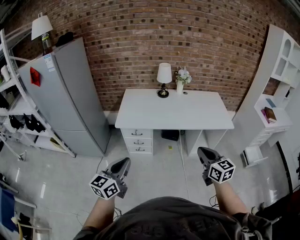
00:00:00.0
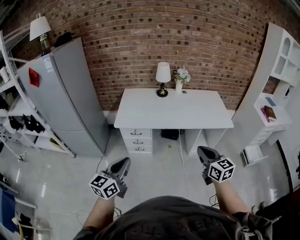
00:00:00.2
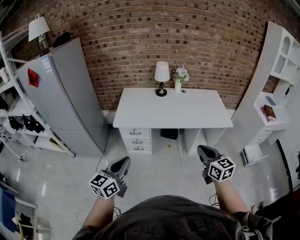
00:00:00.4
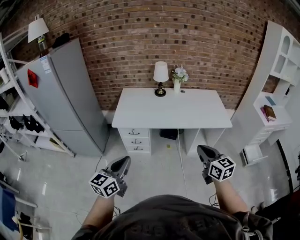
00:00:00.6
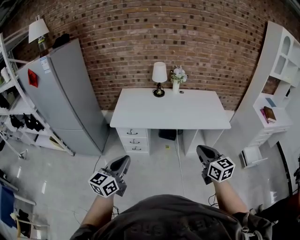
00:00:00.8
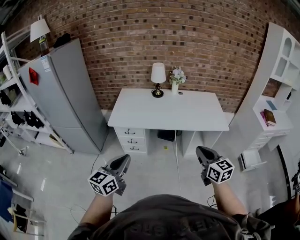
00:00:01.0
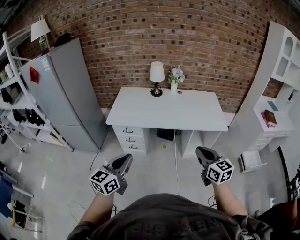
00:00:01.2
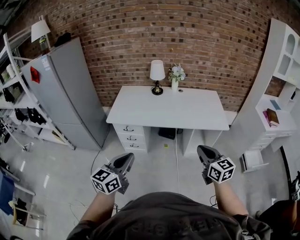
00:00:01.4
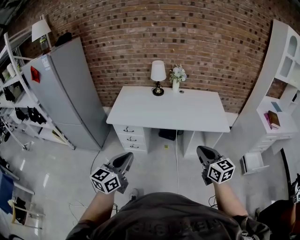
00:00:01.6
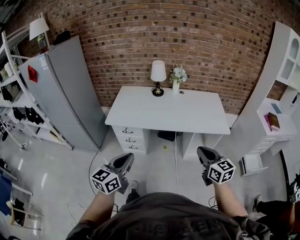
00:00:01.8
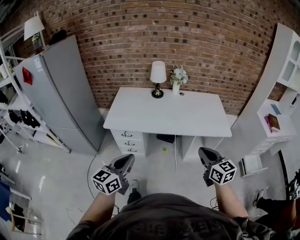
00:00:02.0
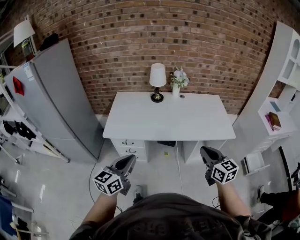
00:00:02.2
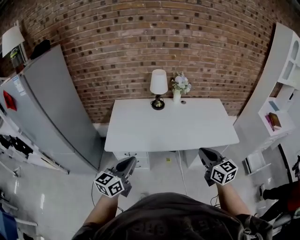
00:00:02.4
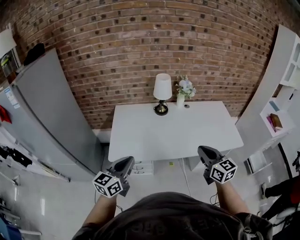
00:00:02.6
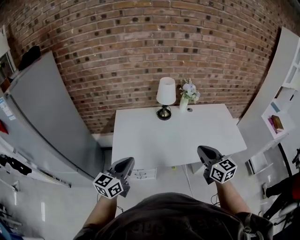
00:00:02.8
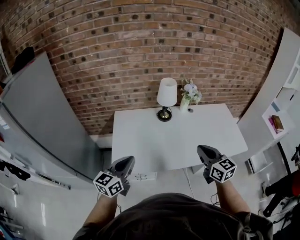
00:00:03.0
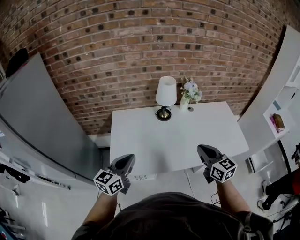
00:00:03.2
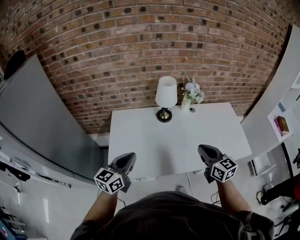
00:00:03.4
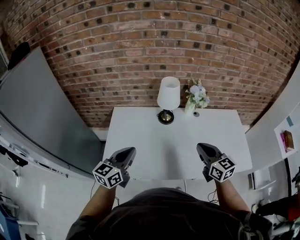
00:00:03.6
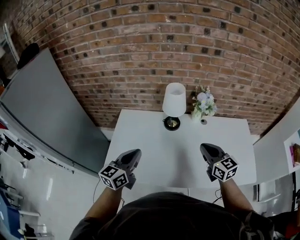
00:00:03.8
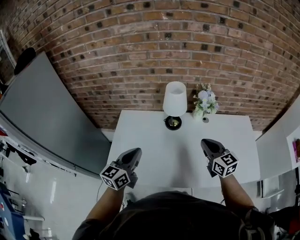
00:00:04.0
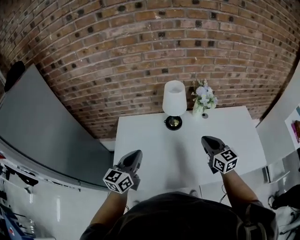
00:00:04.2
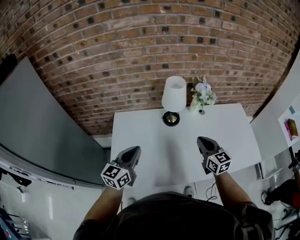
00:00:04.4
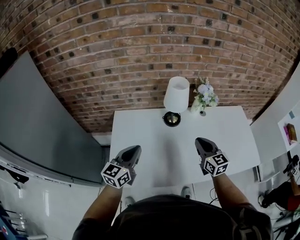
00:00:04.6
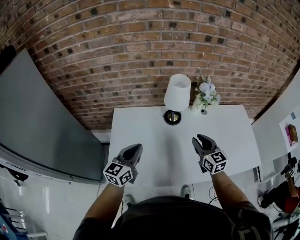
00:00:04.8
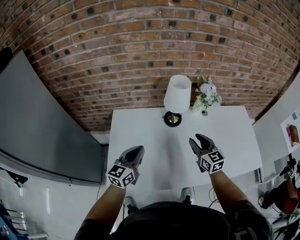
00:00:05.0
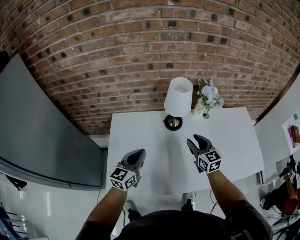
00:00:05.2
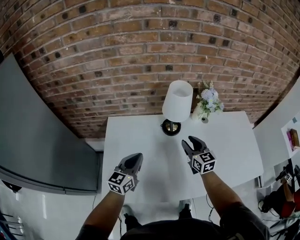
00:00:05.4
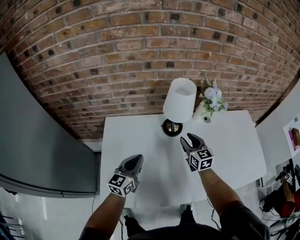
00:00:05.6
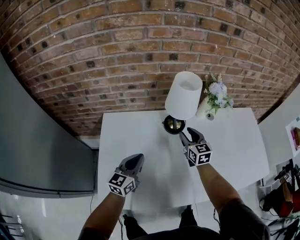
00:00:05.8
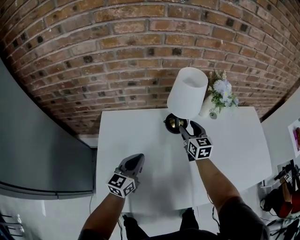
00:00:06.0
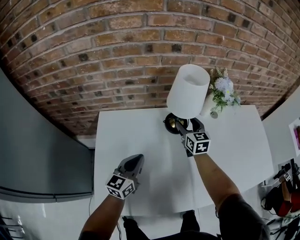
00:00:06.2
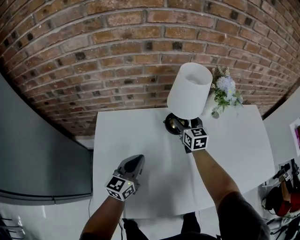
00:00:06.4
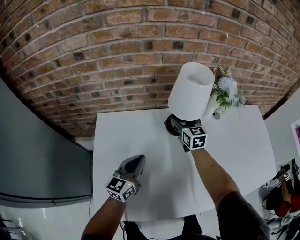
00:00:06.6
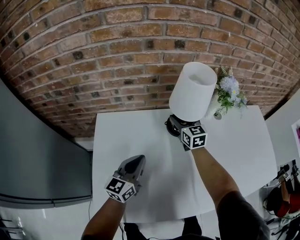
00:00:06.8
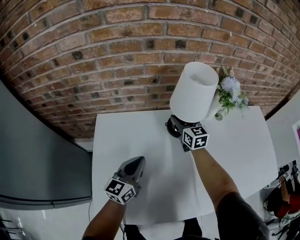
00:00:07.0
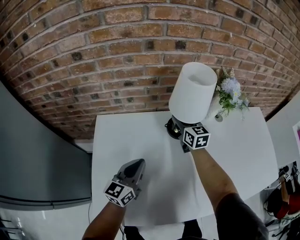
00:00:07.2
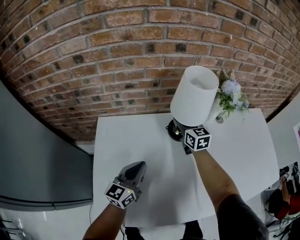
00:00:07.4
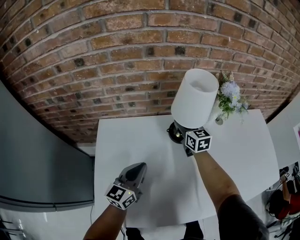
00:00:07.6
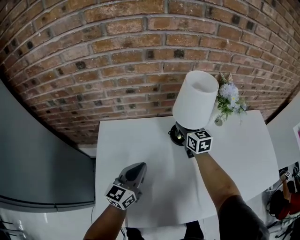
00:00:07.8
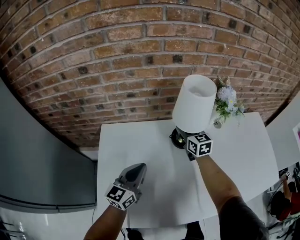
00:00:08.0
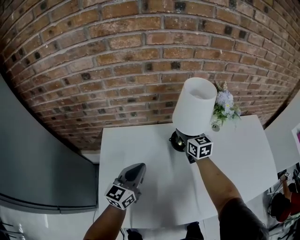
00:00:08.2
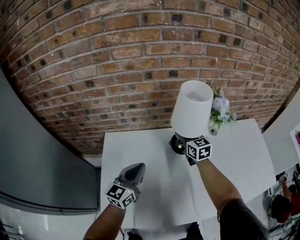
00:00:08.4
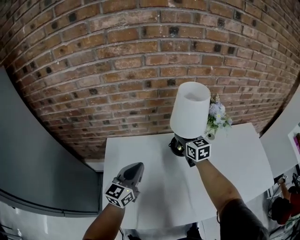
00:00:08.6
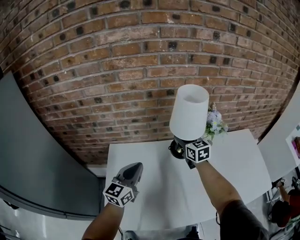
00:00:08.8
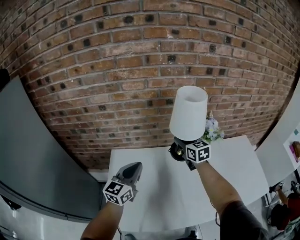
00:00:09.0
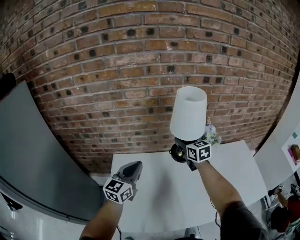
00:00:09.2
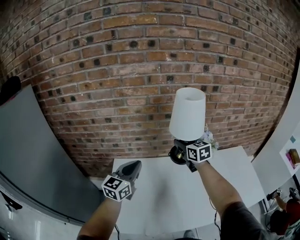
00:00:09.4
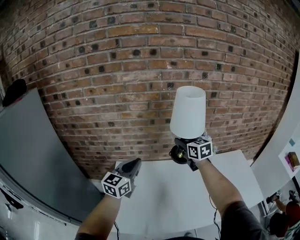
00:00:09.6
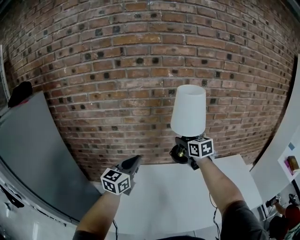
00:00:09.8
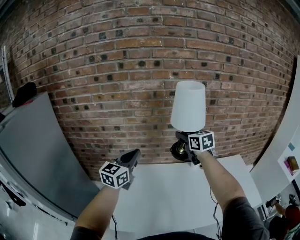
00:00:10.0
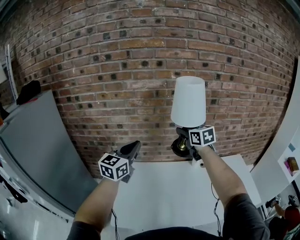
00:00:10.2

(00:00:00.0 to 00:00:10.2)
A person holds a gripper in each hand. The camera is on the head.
00:00:00.0 - 00:00:01.4: Both grippers move to the right, some 15 cm.
00:00:01.4 - 00:00:03.0: Both grippers are carried forward and to the left, about 50 cm.
00:00:03.0 - 00:00:04.4: The right gripper goes about 25 cm forward and downward; the left gripper is displaced forward by roughly 20 cm.
00:00:04.4 - 00:00:05.8: The left gripper heads downward and forward, covering about 20 cm. The right gripper shifts some 25 cm forward and downward, and opens its fingers.
00:00:05.8 - 00:00:07.2: The left gripper shifts by about 5 cm. Meanwhile the right gripper heads forward and to the left, covering roughly 15 cm, and opens and closes again.
00:00:07.2 - 00:00:08.8: The two grippers go some 15 cm upward.
00:00:08.8 - 00:00:10.2: Both grippers travel together upward, roughly 30 cm.

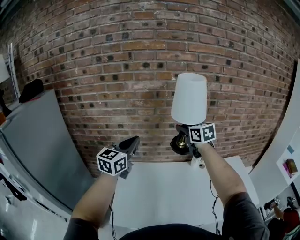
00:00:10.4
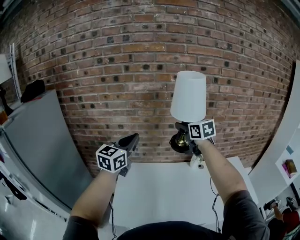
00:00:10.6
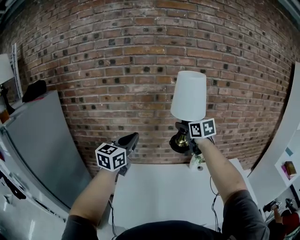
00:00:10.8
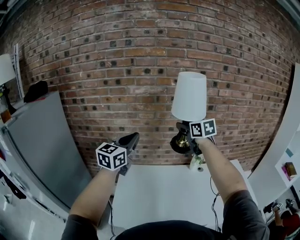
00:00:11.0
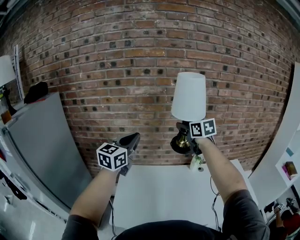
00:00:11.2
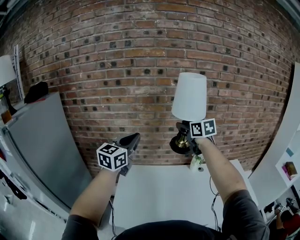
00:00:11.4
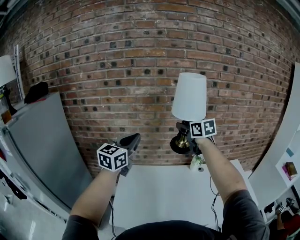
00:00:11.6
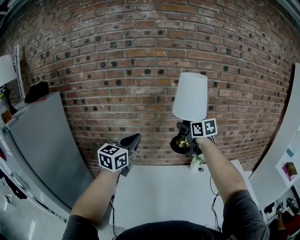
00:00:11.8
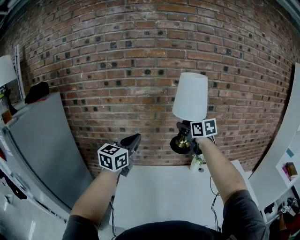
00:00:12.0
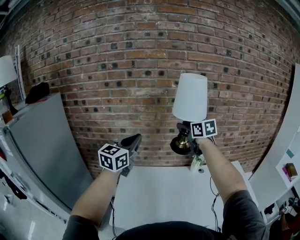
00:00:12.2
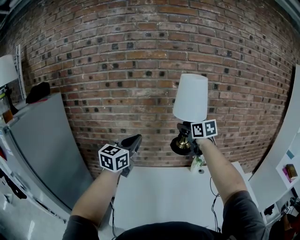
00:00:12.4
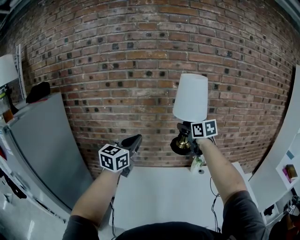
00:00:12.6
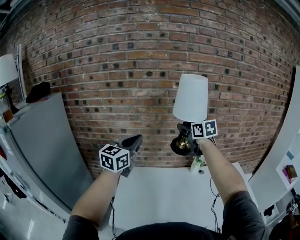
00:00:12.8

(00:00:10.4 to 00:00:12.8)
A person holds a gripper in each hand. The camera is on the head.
00:00:10.4 - 00:00:11.6: The grippers stay close to where they were, moving slightly.
00:00:11.6 - 00:00:12.8: Neither gripper changes place.

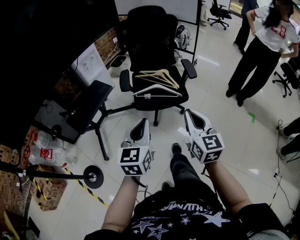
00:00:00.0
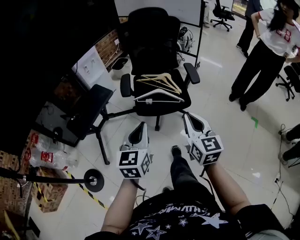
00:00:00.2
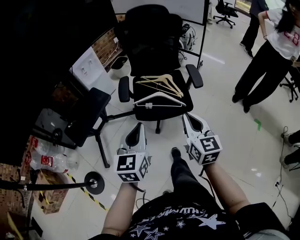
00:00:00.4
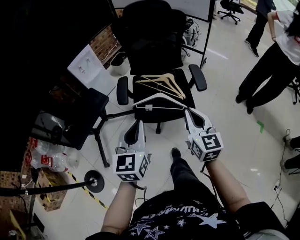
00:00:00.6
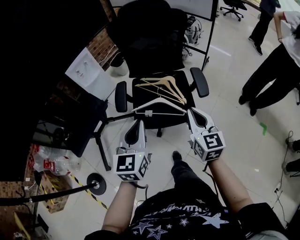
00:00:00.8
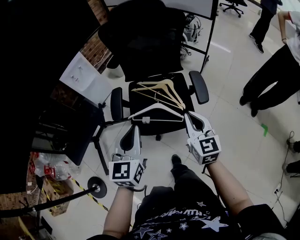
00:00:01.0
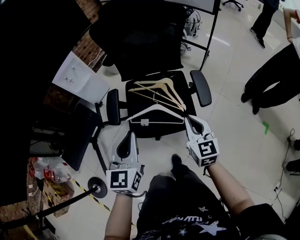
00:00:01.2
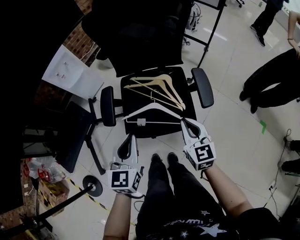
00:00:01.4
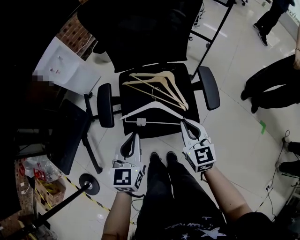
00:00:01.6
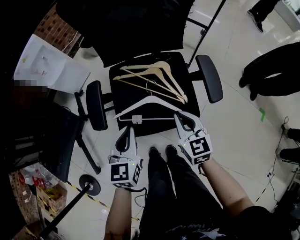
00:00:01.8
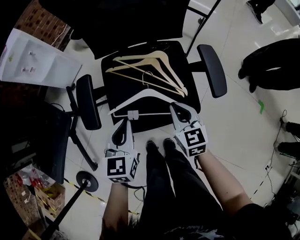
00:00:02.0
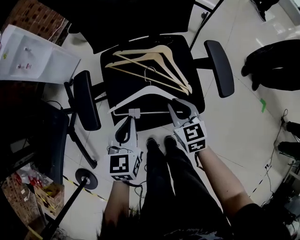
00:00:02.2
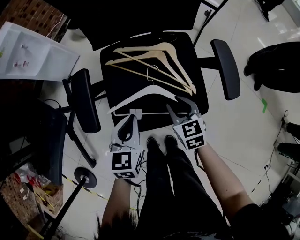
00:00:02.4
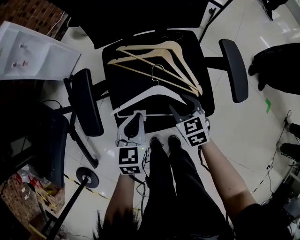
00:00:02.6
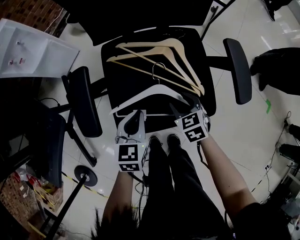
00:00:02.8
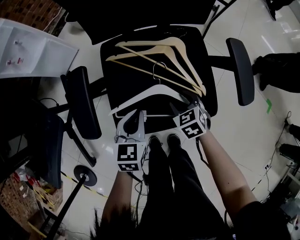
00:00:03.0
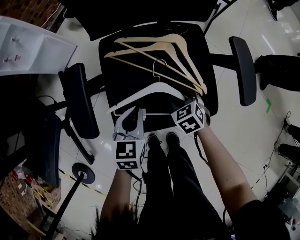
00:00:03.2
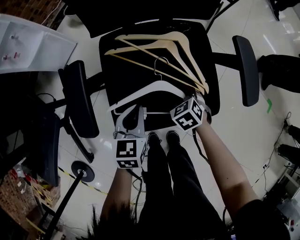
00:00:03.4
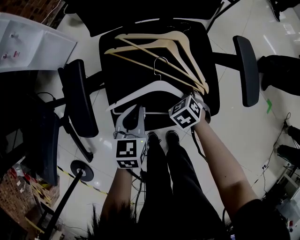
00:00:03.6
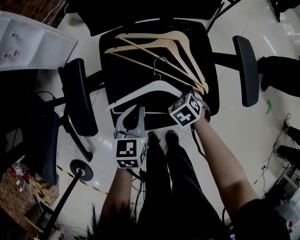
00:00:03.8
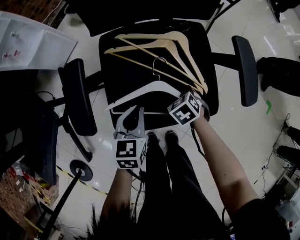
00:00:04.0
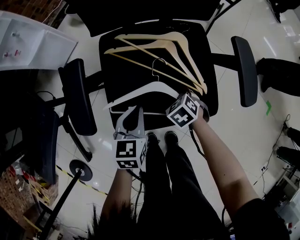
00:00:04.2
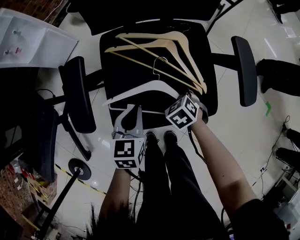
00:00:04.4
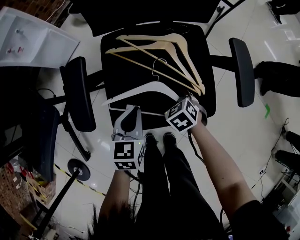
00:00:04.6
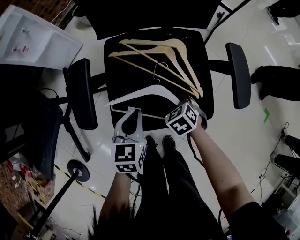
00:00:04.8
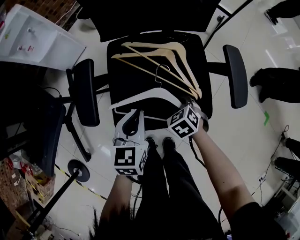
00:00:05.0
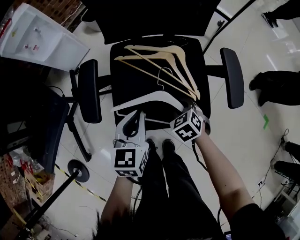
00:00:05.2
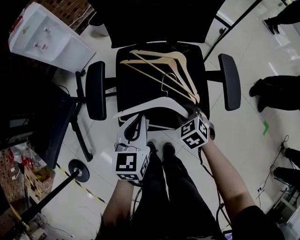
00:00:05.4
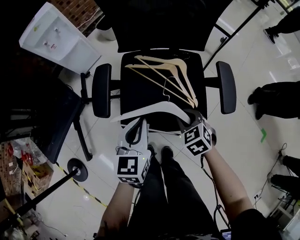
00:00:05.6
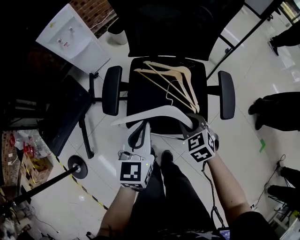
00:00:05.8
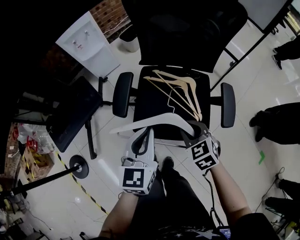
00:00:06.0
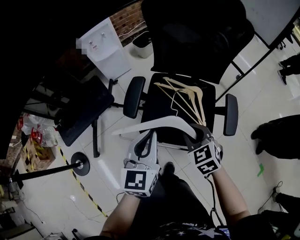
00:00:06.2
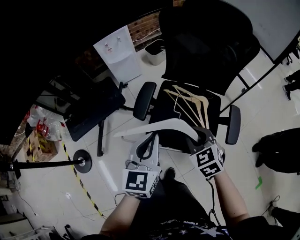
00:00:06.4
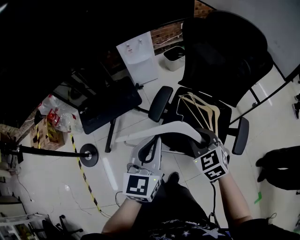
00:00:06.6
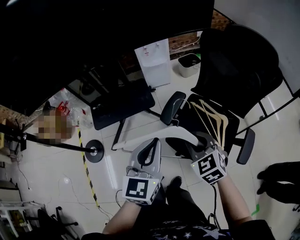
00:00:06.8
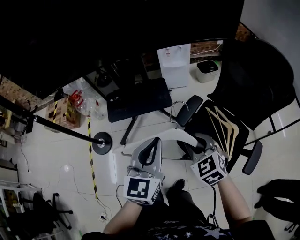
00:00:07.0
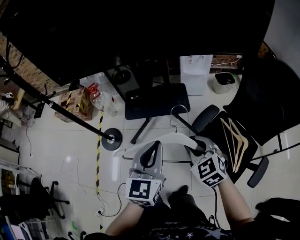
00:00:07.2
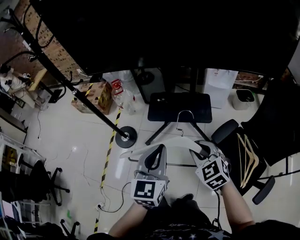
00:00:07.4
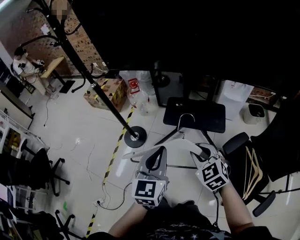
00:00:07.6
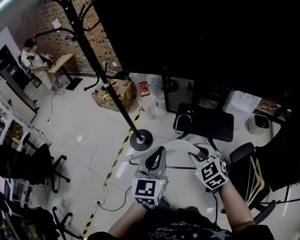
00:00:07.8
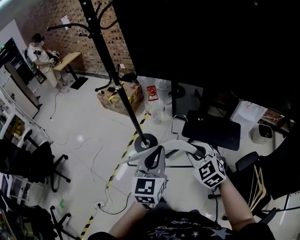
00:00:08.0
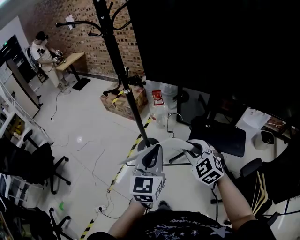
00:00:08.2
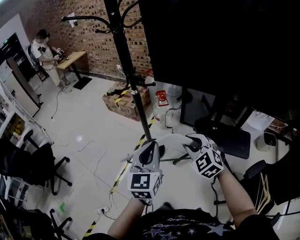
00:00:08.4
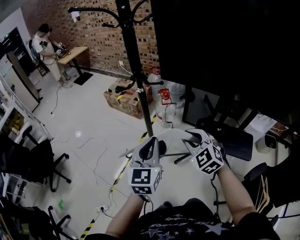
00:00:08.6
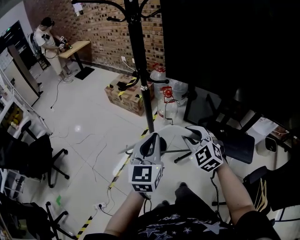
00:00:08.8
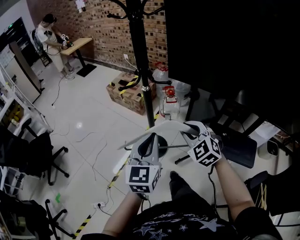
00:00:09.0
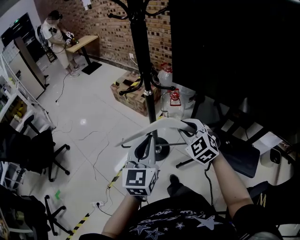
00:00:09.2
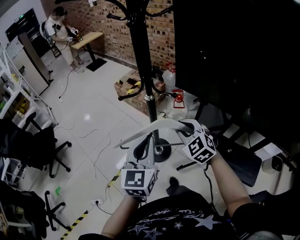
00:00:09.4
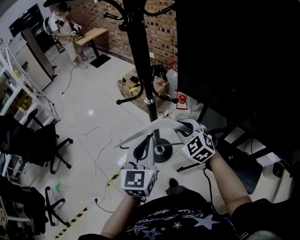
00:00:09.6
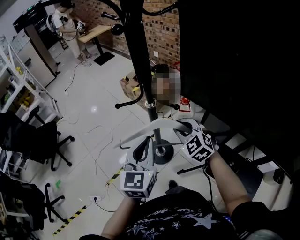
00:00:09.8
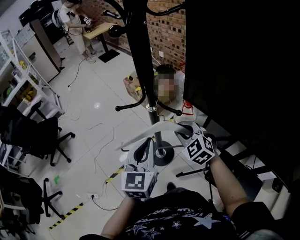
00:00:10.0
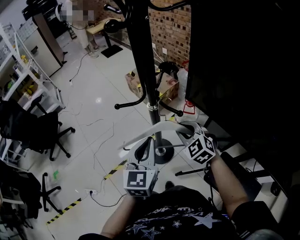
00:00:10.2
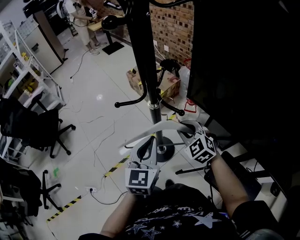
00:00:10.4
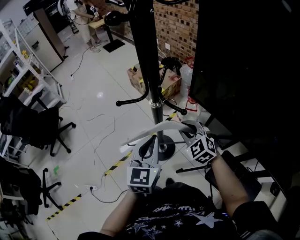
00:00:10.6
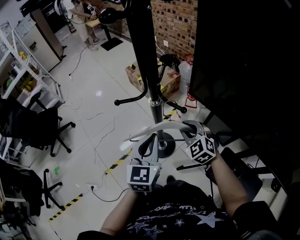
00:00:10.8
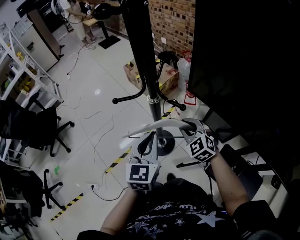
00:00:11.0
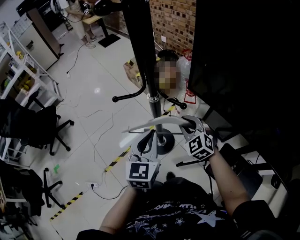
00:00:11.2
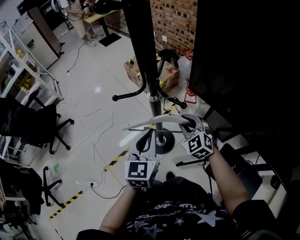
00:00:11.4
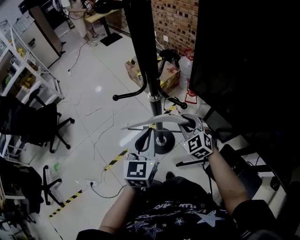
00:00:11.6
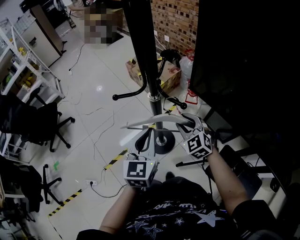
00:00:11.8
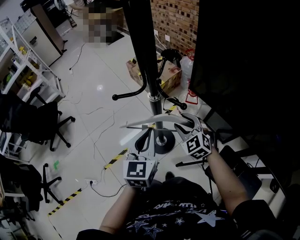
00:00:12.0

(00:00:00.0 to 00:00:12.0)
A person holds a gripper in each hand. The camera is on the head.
00:00:00.0 - 00:00:01.6: Both grippers move forward and downward, some 40 cm.
00:00:01.6 - 00:00:03.0: Both grippers move downward, some 25 cm. The right gripper tilts its fingers roughly 40 degrees downward, and opens up.
00:00:03.0 - 00:00:04.4: The right gripper closes.
00:00:04.4 - 00:00:06.0: The grippers both shift upward by some 25 cm. The right gripper rotates about 30 degrees, while the left gripper turns by roughly 30 degrees.
00:00:06.0 - 00:00:07.6: The right gripper changes place by approximately 50 cm, and changes its angle by some 60 degrees, while the left gripper shifts by approximately 40 cm, and rotates about 60 degrees.
00:00:07.6 - 00:00:09.0: The left gripper travels to the left and forward by about 35 cm. Meanwhile the right gripper is displaced forward and to the left by approximately 40 cm, and rotates roughly 30 degrees.
00:00:09.0 - 00:00:10.4: Both grippers move forward, some 15 cm. The right gripper rotates some 20 degrees.
00:00:10.4 - 00:00:12.0: The right gripper opens up.
